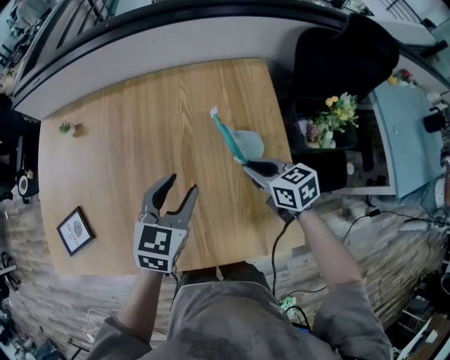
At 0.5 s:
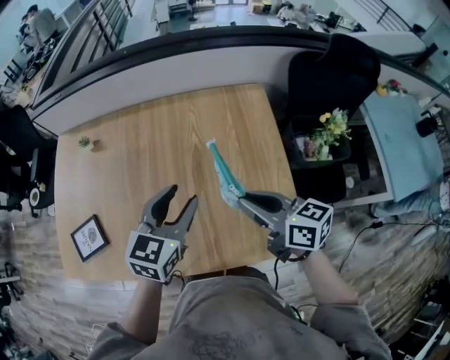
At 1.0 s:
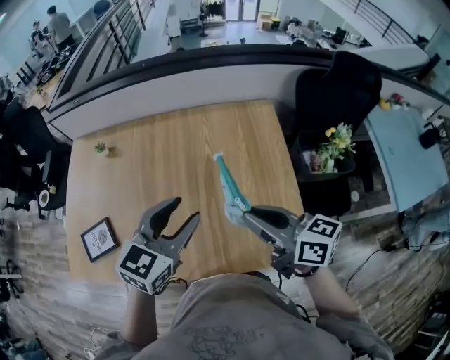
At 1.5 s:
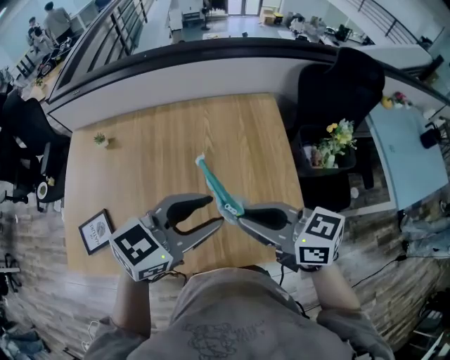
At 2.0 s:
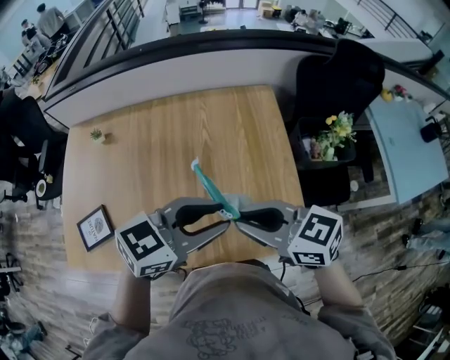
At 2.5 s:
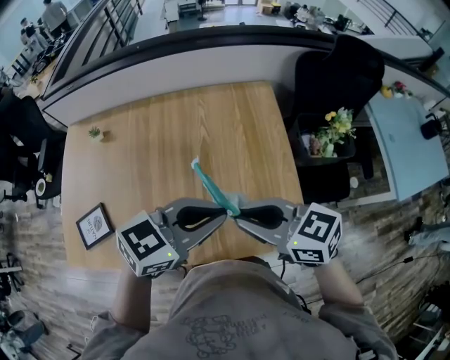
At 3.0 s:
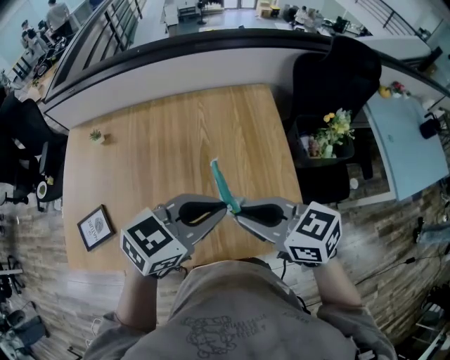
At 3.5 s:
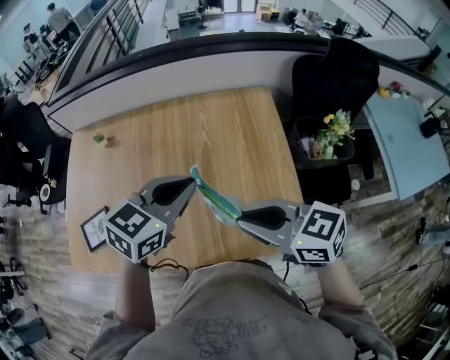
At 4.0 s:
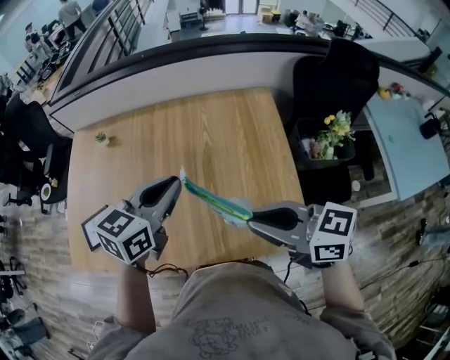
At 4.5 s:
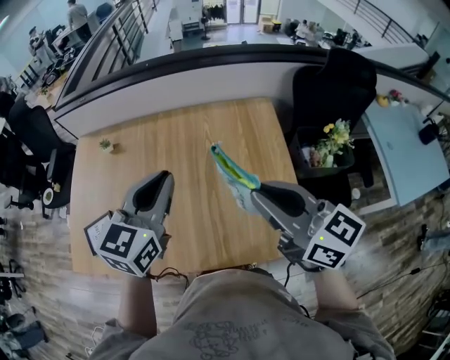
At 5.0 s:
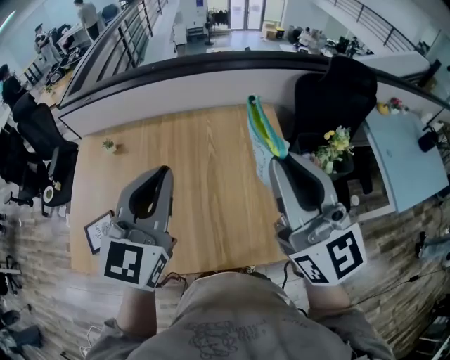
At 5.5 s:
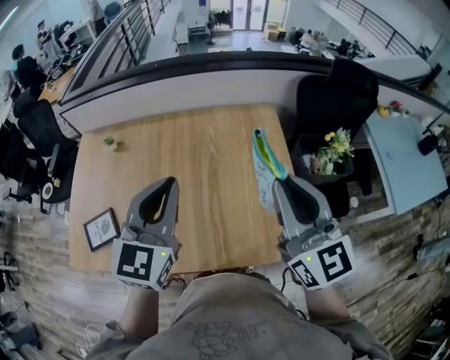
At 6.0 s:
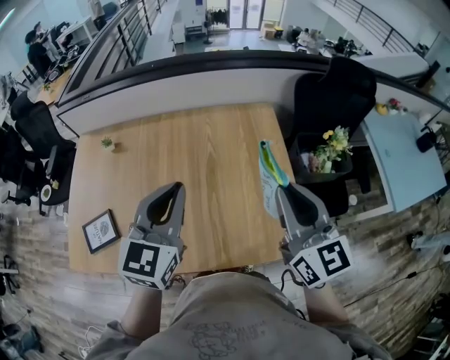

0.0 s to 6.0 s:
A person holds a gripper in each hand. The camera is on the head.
0.0 to 2.0 s: The two grippers go some 20 cm upward. The right gripper swivels approximately 20 degrees. Meanwhile the left gripper changes its angle by approximately 40 degrees.
2.0 to 4.0 s: The left gripper shifts by roughly 10 cm, swivels about 30 degrees, and closes up.
4.0 to 6.0 s: The left gripper shifts some 5 cm upward, and rotates approximately 30 degrees. The right gripper moves upward and to the right, approximately 10 cm, and turns by about 50 degrees.

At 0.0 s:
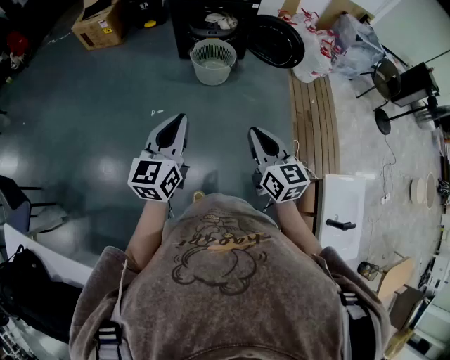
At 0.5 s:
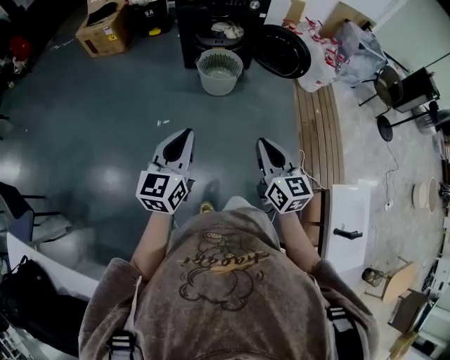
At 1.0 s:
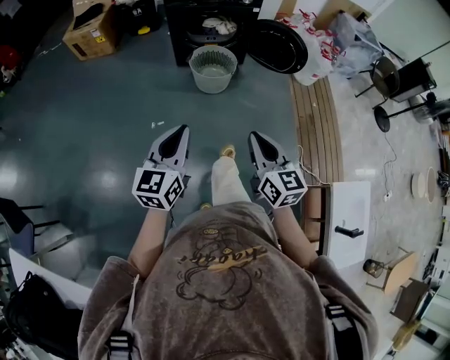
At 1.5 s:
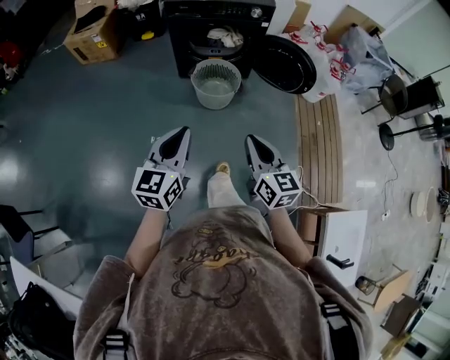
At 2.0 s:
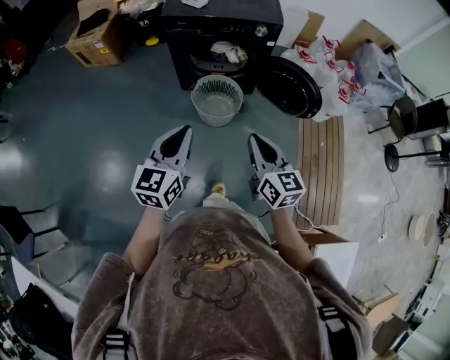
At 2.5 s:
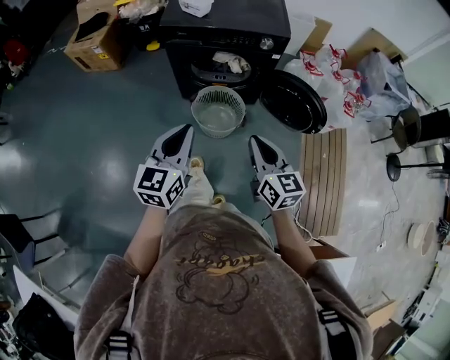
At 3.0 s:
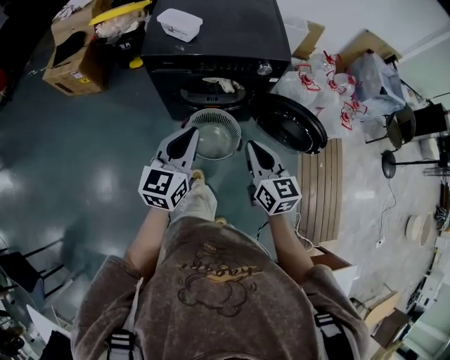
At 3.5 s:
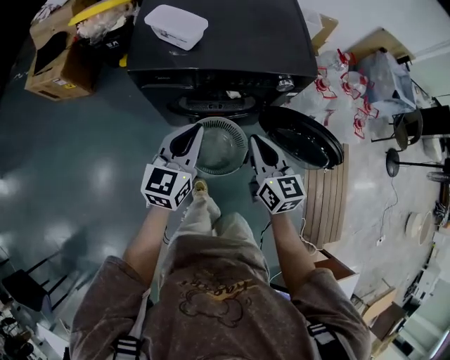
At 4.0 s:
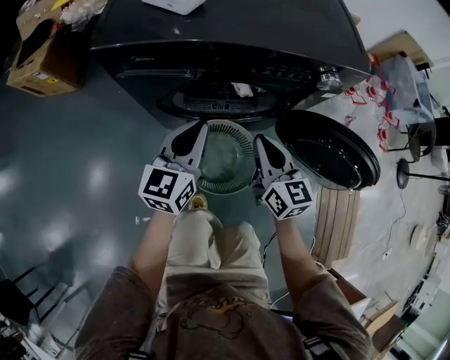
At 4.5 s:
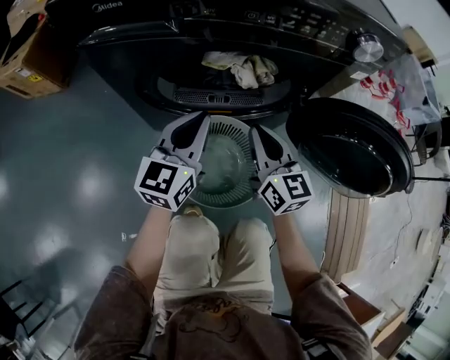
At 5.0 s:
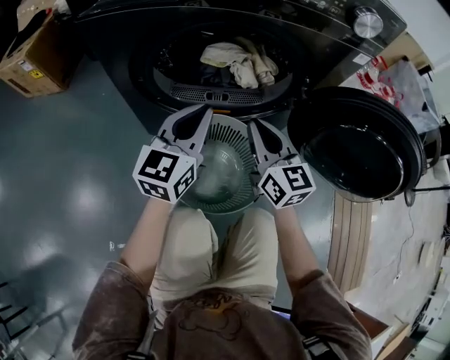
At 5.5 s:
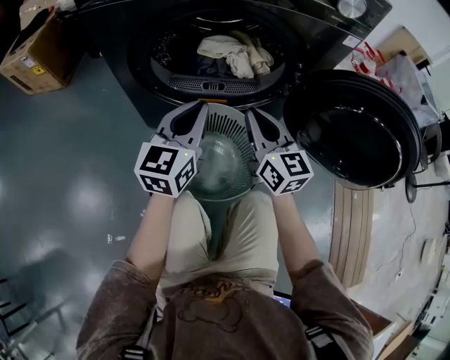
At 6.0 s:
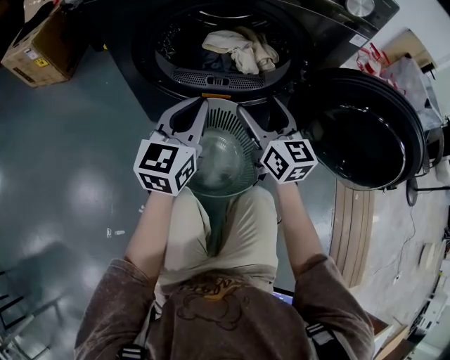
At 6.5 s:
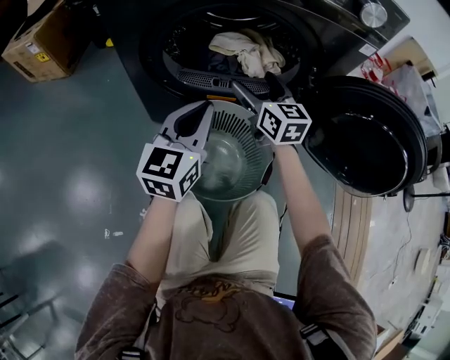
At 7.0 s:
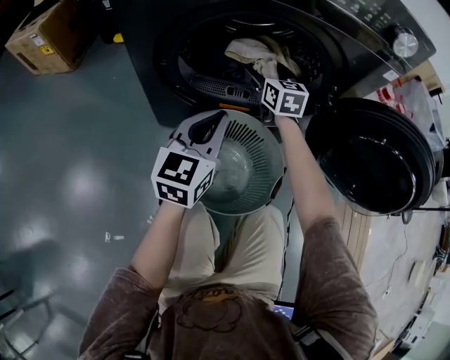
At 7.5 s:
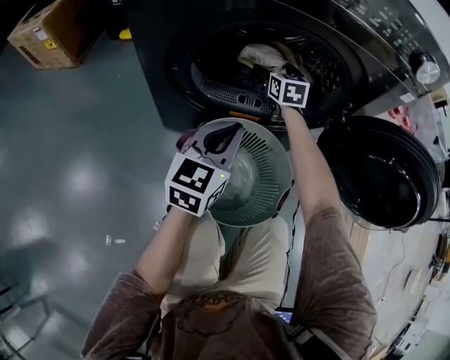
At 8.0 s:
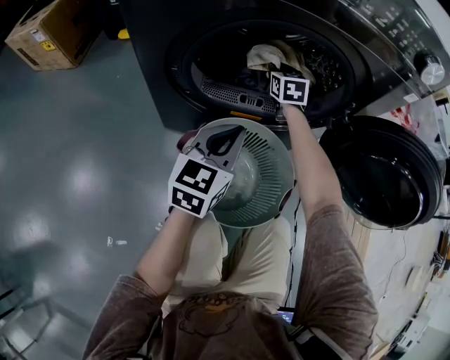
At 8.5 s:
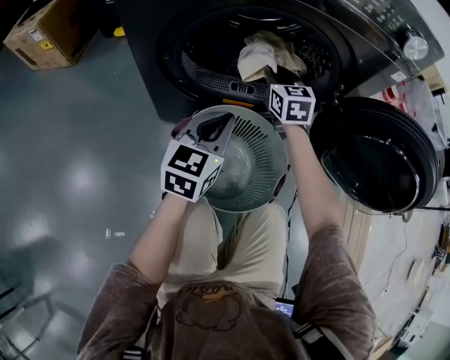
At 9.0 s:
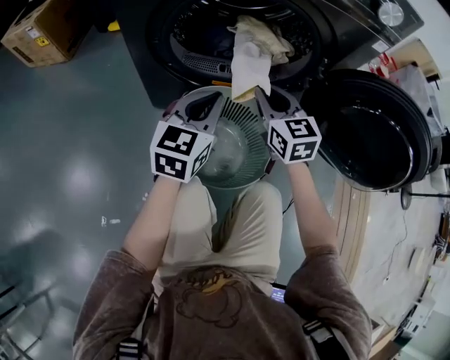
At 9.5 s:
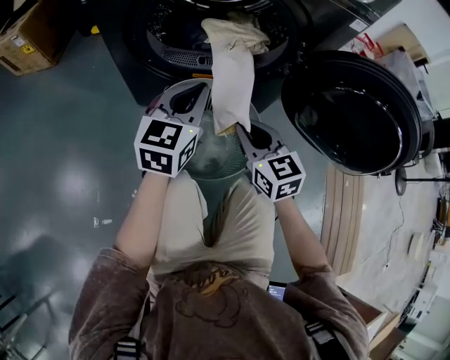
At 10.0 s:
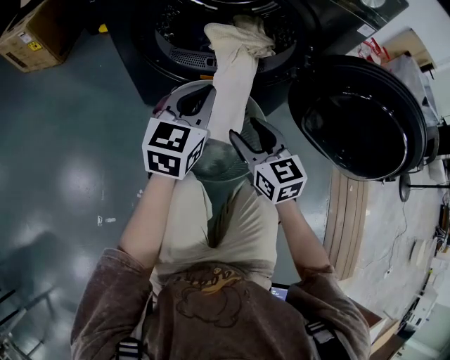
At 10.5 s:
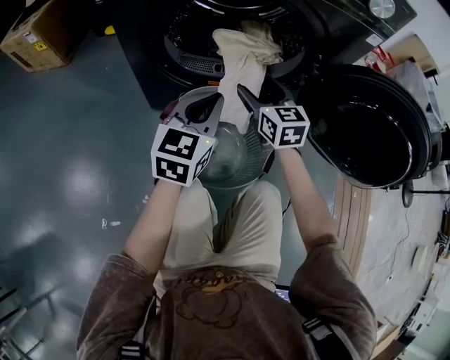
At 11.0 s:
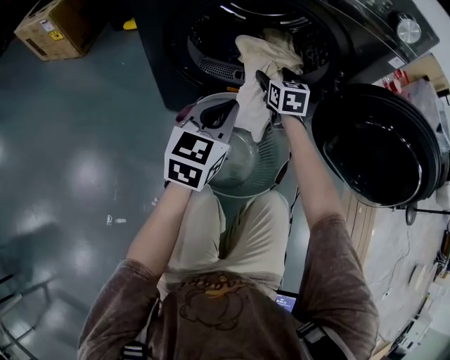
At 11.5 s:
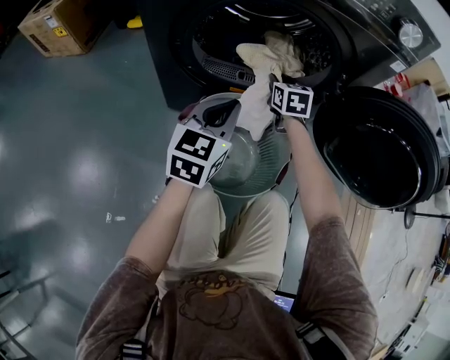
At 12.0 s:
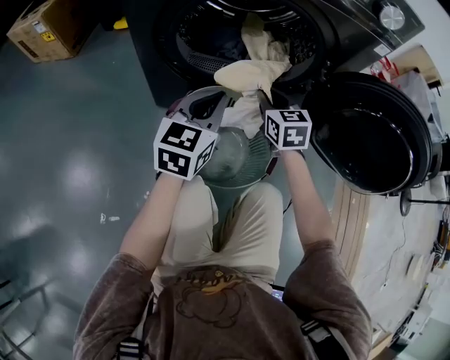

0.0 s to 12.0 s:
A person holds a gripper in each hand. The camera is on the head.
0.0 to 2.0 s: Both grippers travel together forward, approximately 35 cm.
2.0 to 4.0 s: The pair of grippers is taken forward, some 50 cm. Both grippers move downward, some 30 cm.
4.0 to 6.0 s: Both grippers travel together downward, approximately 15 cm. The right gripper opens.
6.0 to 8.0 s: The left gripper is displaced downward by roughly 5 cm, while the right gripper is displaced forward by about 30 cm, turns by roughly 30 degrees, and closes.
8.0 to 10.0 s: The right gripper moves backward, roughly 35 cm, changes its angle by about 20 degrees, and opens its fingers, while the left gripper ends up approximately 5 cm from where it was.
10.0 to 12.0 s: The right gripper travels forward by approximately 15 cm, and closes its fingers.

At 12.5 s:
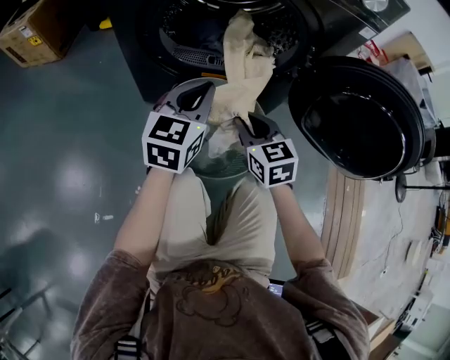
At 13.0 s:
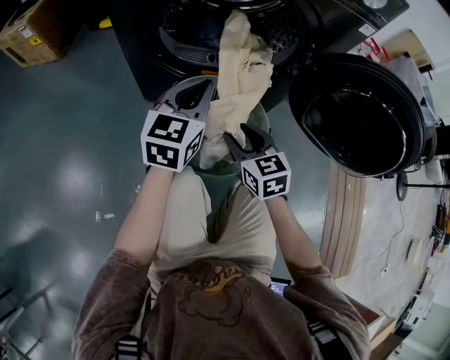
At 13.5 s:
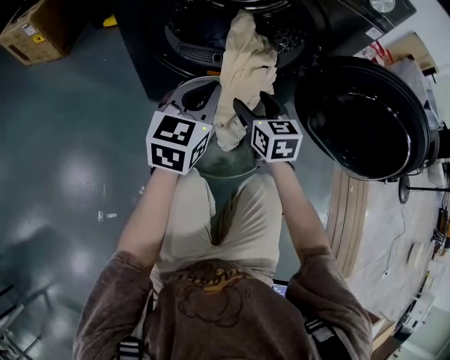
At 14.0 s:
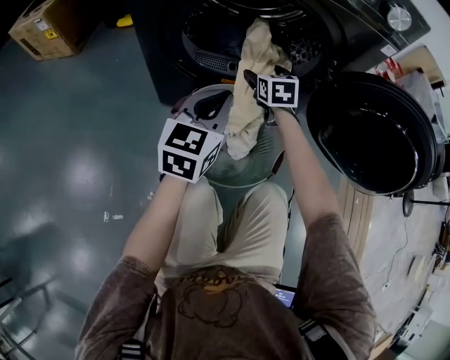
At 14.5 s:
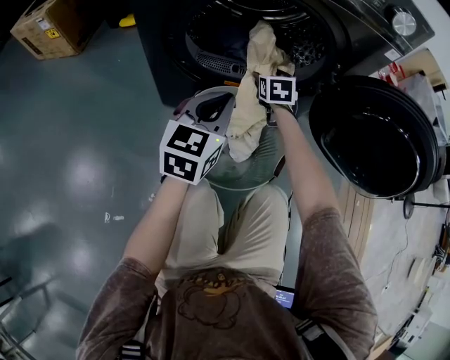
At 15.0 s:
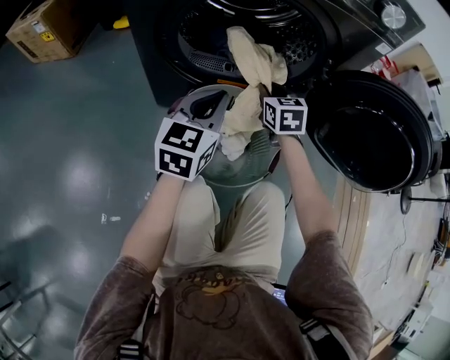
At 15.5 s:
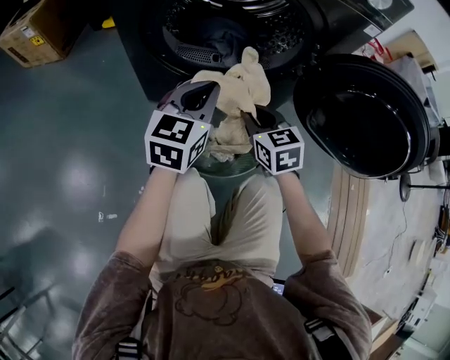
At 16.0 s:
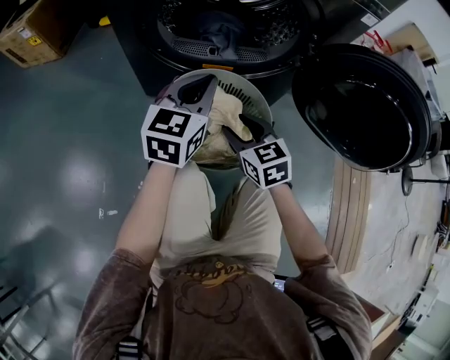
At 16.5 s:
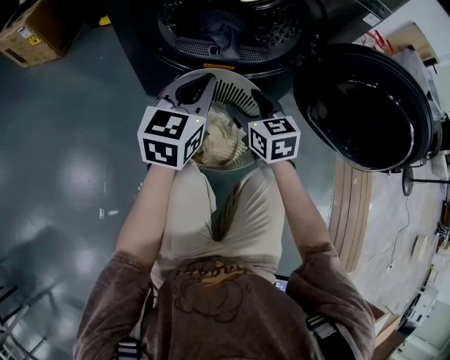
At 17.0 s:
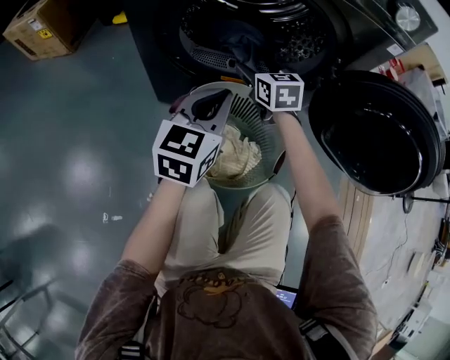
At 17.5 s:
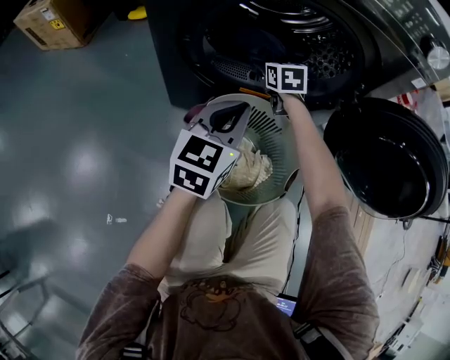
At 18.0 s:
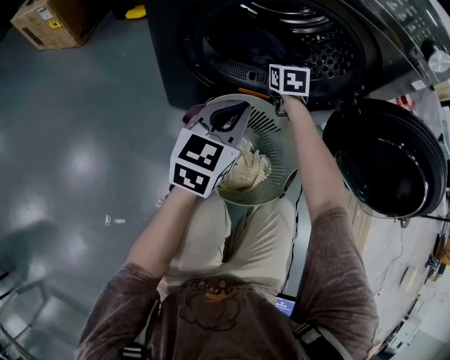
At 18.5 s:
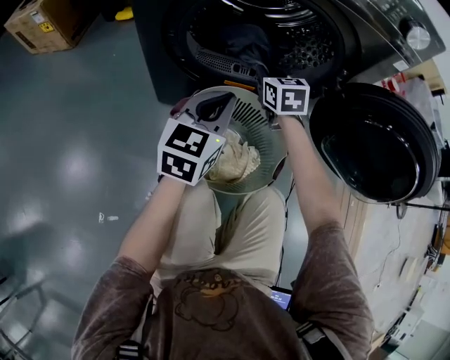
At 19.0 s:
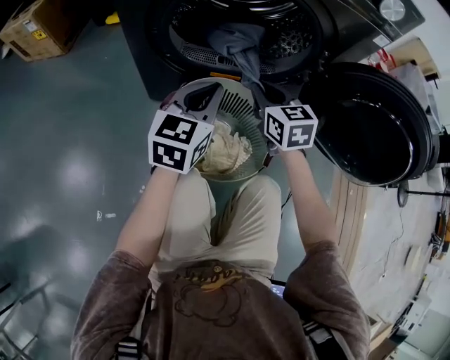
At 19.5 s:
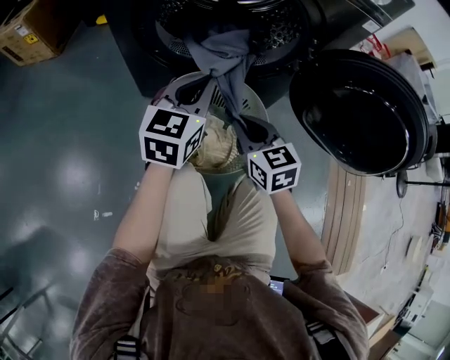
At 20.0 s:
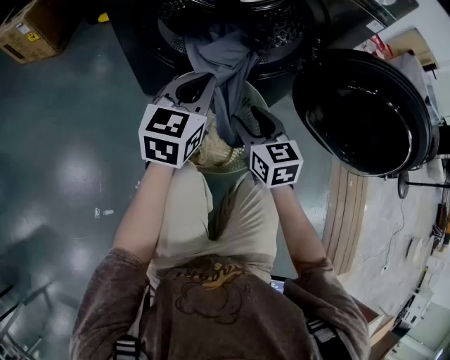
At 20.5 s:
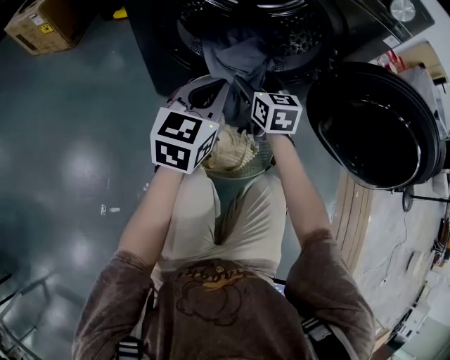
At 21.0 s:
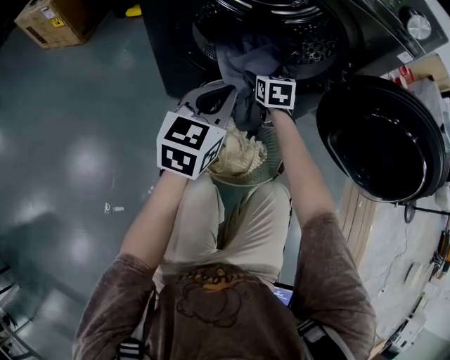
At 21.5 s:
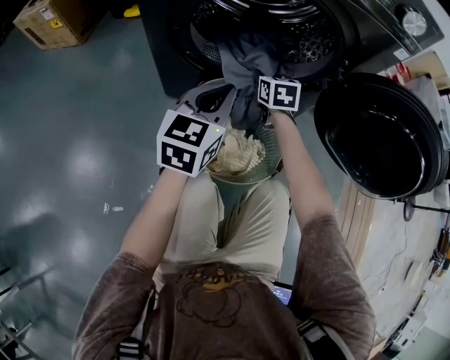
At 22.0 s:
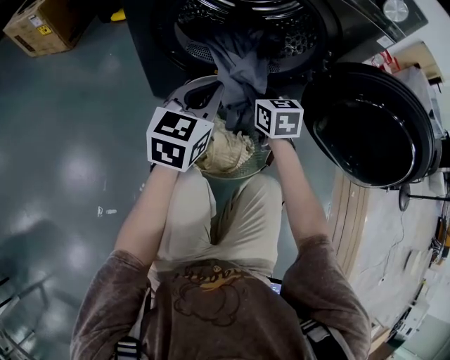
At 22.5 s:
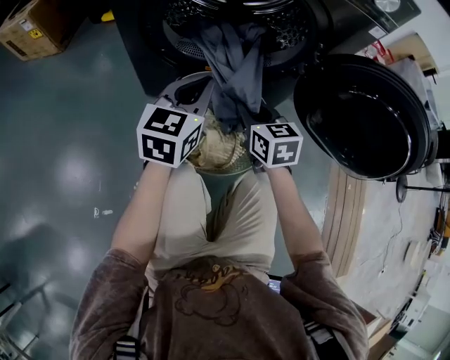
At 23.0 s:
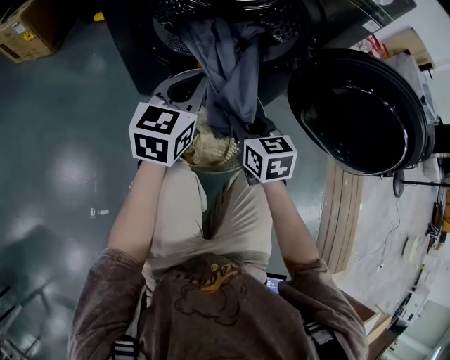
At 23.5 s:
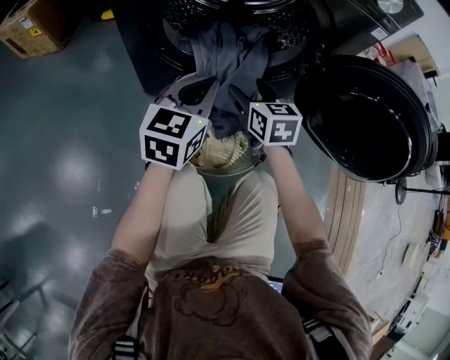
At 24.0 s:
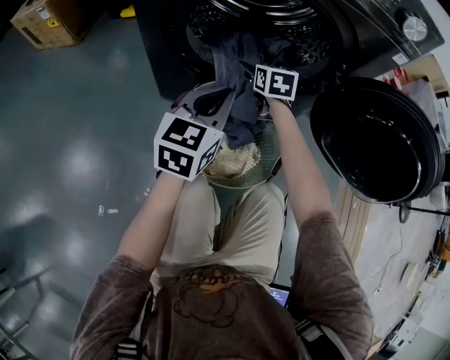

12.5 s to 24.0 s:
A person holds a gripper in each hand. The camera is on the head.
12.5 to 14.5 s: The right gripper goes about 20 cm forward, and opens its fingers.
14.5 to 16.5 s: The right gripper shifts about 20 cm backward, turns by some 20 degrees, and closes, then reopens.
16.5 to 18.5 s: The right gripper travels forward by roughly 15 cm, and closes its fingers.
18.5 to 20.0 s: The right gripper is displaced backward by roughly 20 cm, and opens.
20.0 to 22.0 s: The right gripper moves forward, some 10 cm, and opens and closes again.
22.0 to 24.0 s: The right gripper moves forward, roughly 10 cm, and opens.
